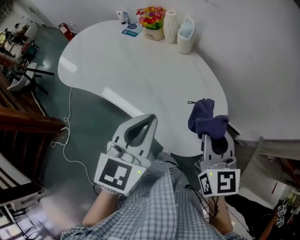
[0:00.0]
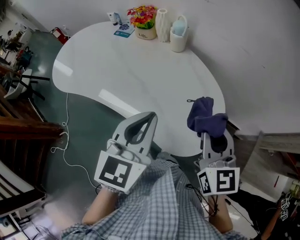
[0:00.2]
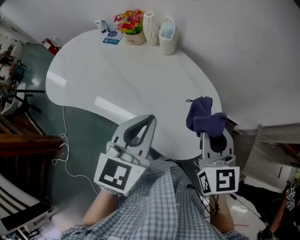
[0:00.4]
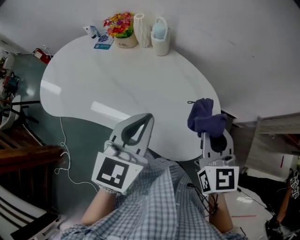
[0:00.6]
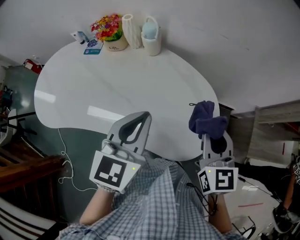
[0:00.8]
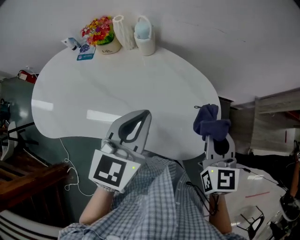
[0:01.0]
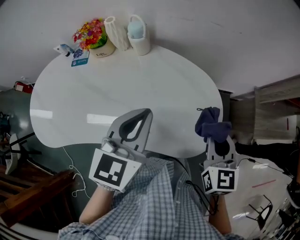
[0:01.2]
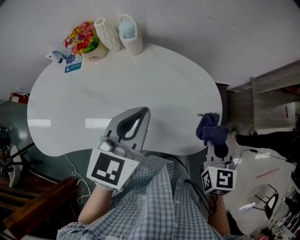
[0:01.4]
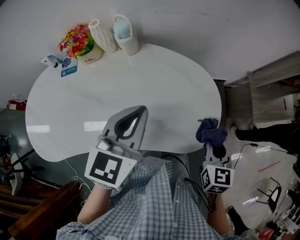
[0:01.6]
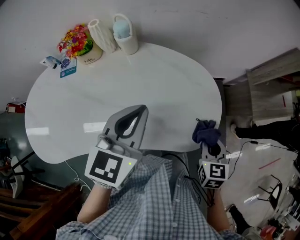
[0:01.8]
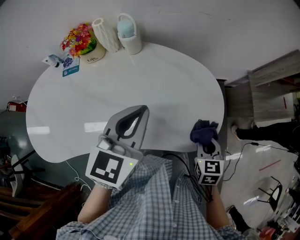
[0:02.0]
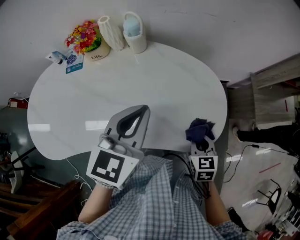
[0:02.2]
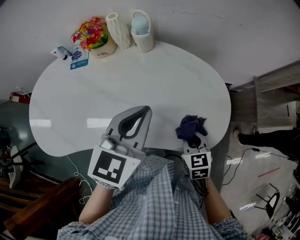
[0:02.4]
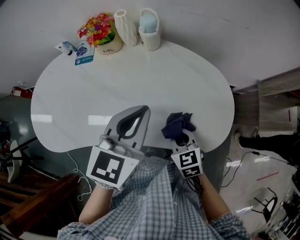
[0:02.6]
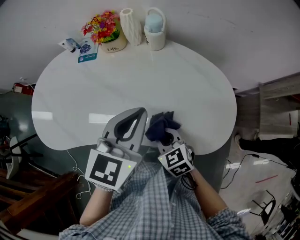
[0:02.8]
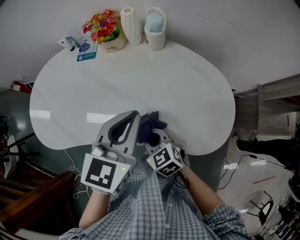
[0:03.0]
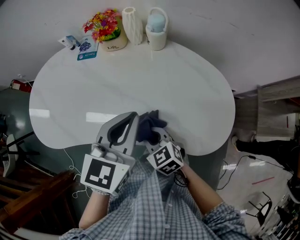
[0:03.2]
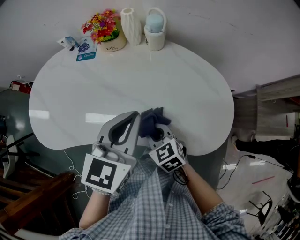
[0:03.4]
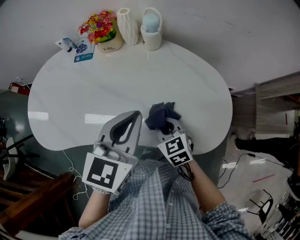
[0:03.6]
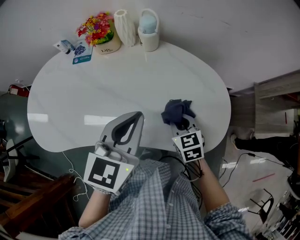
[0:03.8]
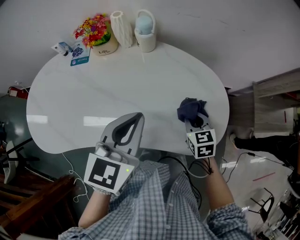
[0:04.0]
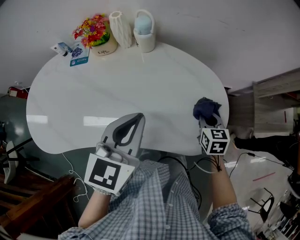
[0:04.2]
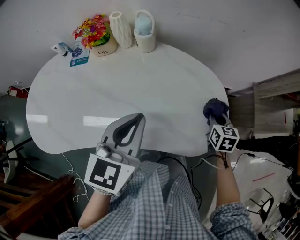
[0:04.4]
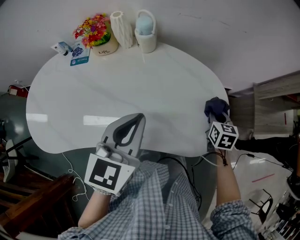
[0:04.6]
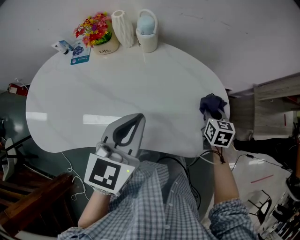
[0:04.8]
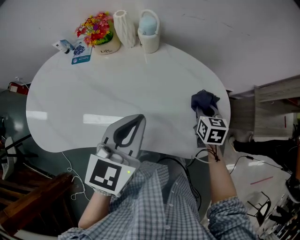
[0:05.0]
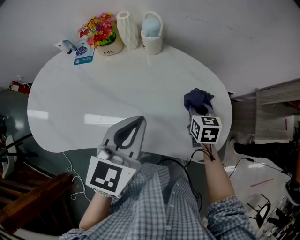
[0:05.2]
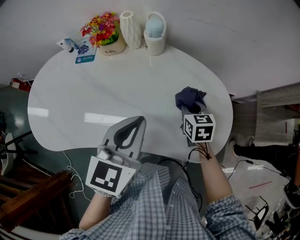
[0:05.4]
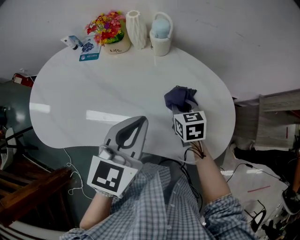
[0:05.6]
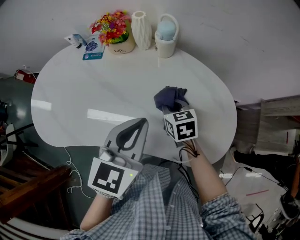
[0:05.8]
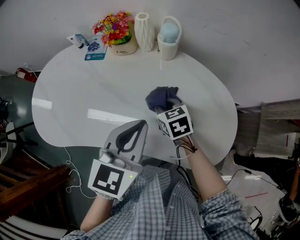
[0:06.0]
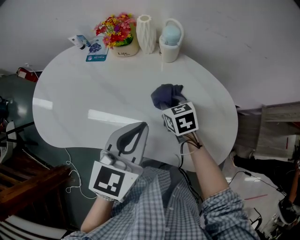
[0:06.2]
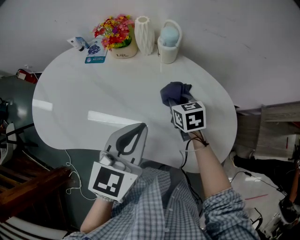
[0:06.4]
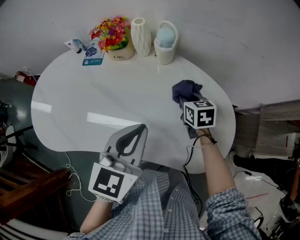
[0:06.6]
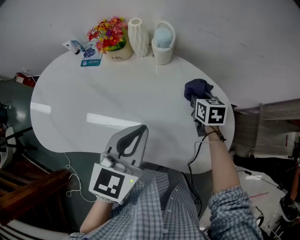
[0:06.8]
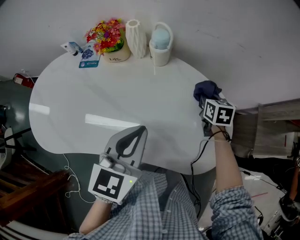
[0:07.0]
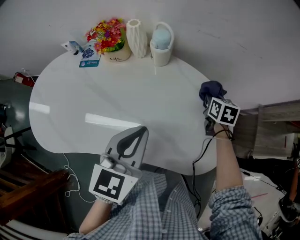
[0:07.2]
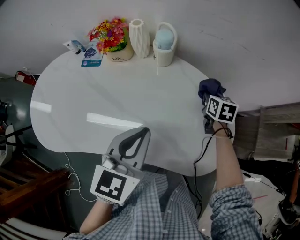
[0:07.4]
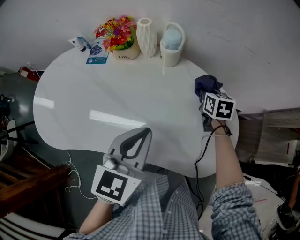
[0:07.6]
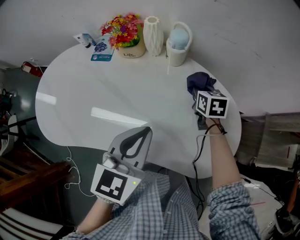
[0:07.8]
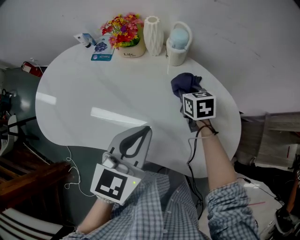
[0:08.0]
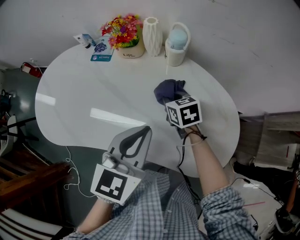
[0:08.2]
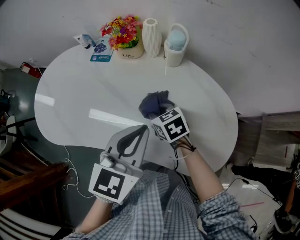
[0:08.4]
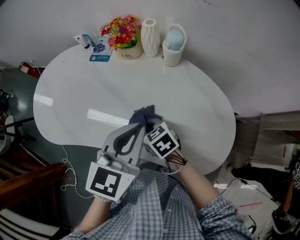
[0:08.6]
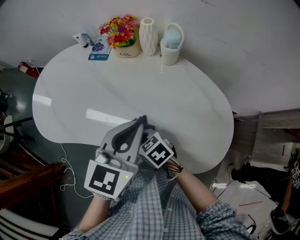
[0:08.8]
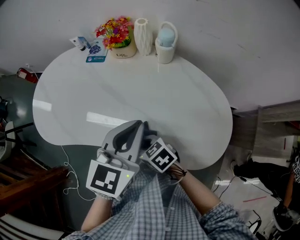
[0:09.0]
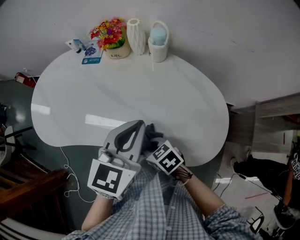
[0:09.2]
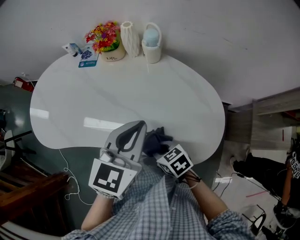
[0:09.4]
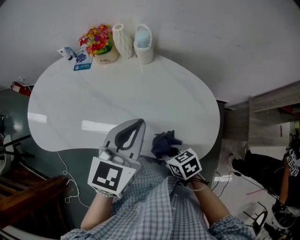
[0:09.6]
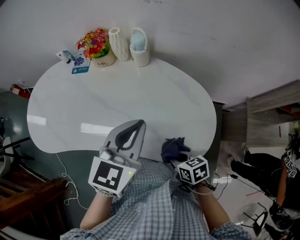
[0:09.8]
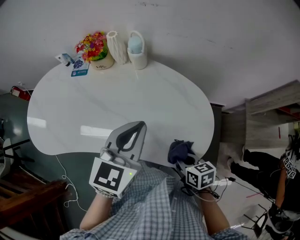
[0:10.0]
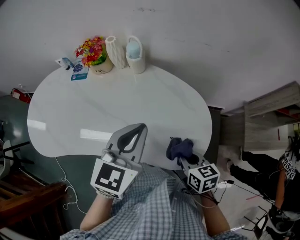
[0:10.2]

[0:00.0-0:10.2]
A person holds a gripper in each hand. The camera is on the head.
0:00.0 to 0:01.4: The left gripper changes place by some 15 cm, and changes its angle by some 30 degrees; the right gripper shifts some 10 cm downward, and swivels some 50 degrees.
0:01.4 to 0:03.0: The left gripper moves roughly 10 cm. The right gripper shifts by roughly 35 cm, and turns by about 60 degrees.
0:03.0 to 0:04.4: The right gripper ends up approximately 35 cm from where it was, and rotates about 50 degrees.
0:04.4 to 0:05.8: The right gripper moves to the left, roughly 25 cm, and changes its angle by roughly 30 degrees.
0:05.8 to 0:07.2: The right gripper travels to the right and forward by roughly 25 cm, and rotates about 20 degrees.
0:07.2 to 0:08.8: The right gripper changes place by approximately 40 cm, and rotates about 60 degrees.
0:08.8 to 0:10.2: The right gripper ends up about 30 cm from where it was, and rotates approximately 50 degrees; the left gripper moves about 10 cm.

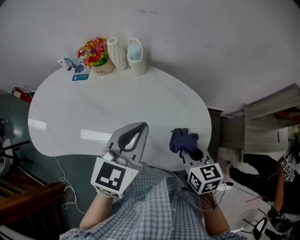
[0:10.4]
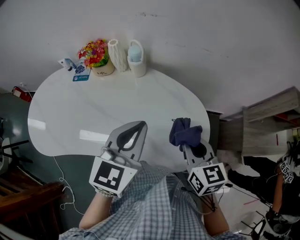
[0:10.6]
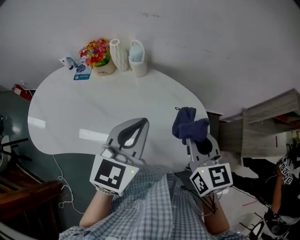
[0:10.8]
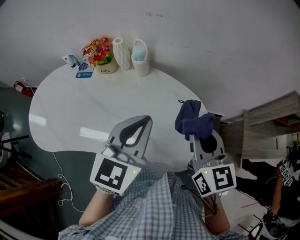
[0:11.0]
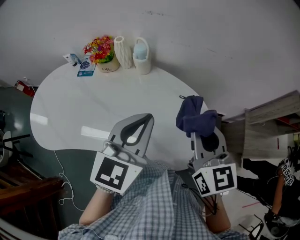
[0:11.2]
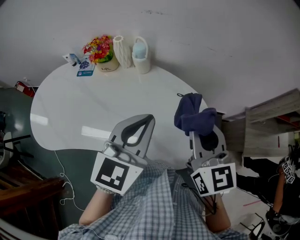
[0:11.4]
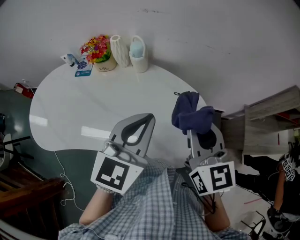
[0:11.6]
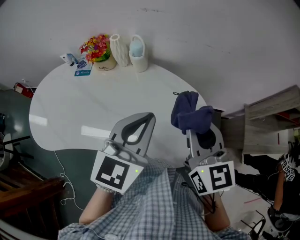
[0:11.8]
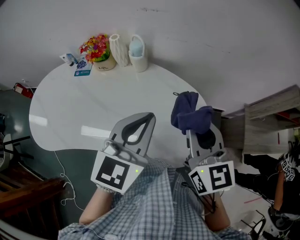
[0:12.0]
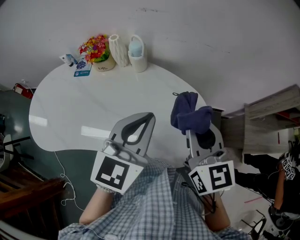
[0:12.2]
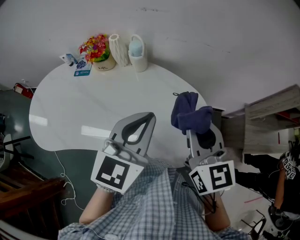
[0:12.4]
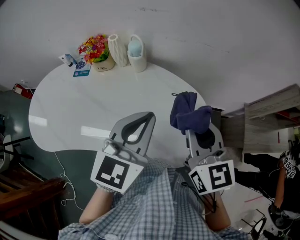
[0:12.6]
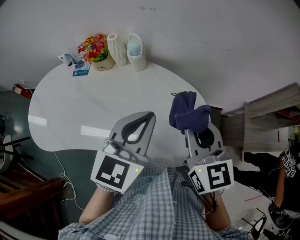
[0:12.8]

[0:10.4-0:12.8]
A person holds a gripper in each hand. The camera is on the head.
0:10.4 to 0:11.6: The right gripper moves upward, some 15 cm, and changes its angle by about 30 degrees.
0:11.6 to 0:12.8: Both grippers stay about where they are.

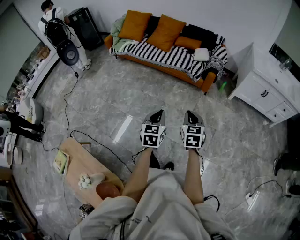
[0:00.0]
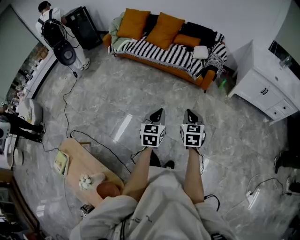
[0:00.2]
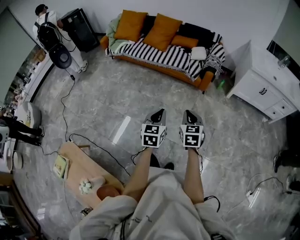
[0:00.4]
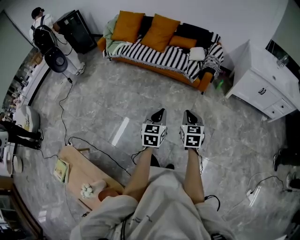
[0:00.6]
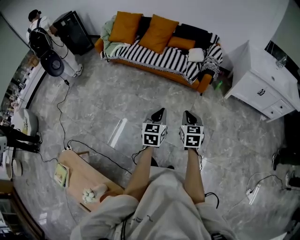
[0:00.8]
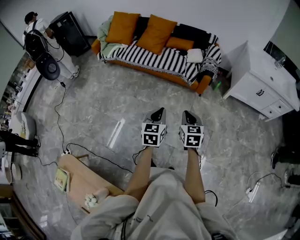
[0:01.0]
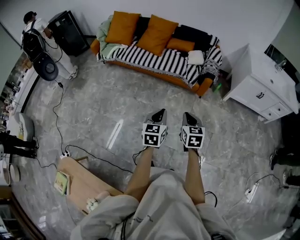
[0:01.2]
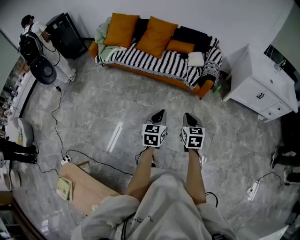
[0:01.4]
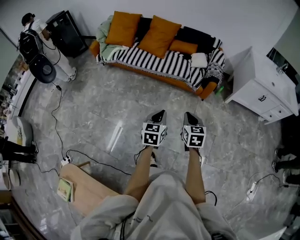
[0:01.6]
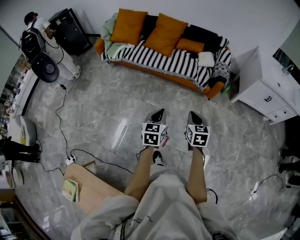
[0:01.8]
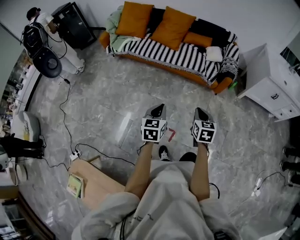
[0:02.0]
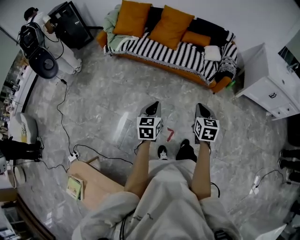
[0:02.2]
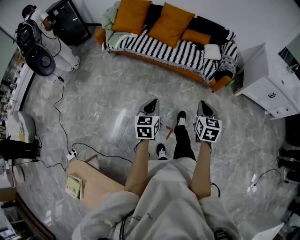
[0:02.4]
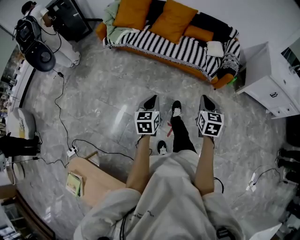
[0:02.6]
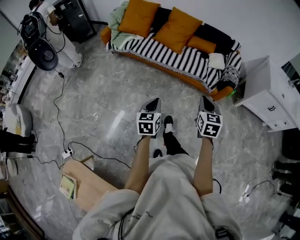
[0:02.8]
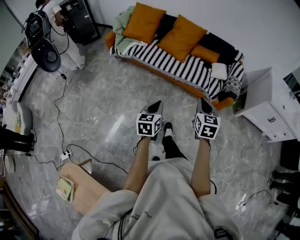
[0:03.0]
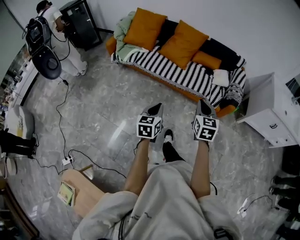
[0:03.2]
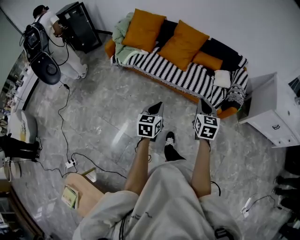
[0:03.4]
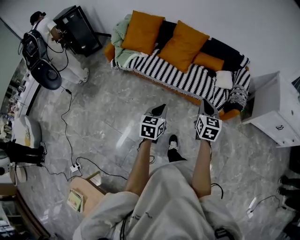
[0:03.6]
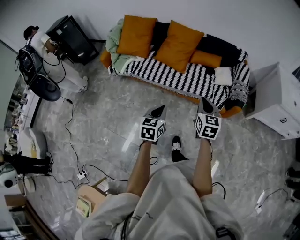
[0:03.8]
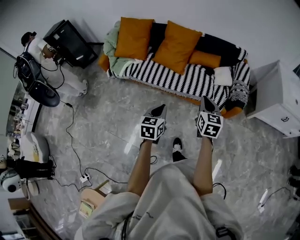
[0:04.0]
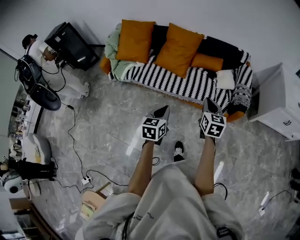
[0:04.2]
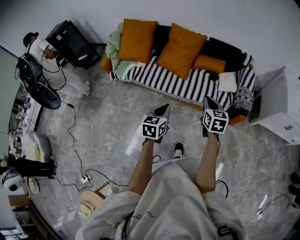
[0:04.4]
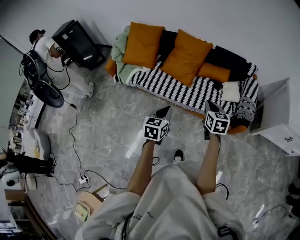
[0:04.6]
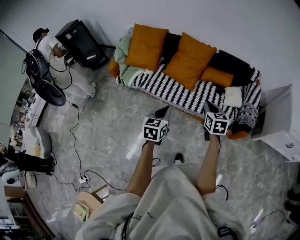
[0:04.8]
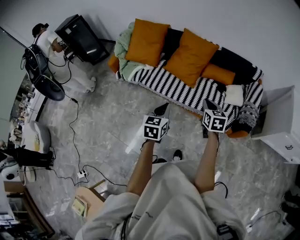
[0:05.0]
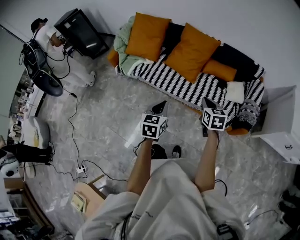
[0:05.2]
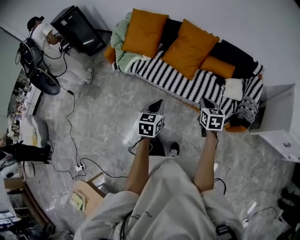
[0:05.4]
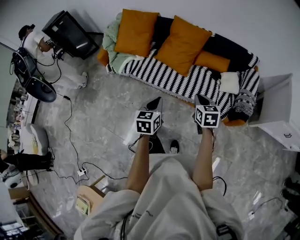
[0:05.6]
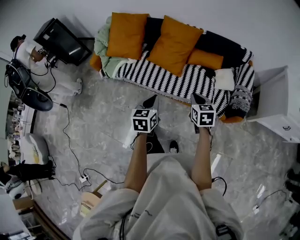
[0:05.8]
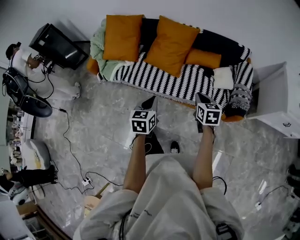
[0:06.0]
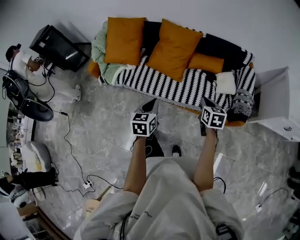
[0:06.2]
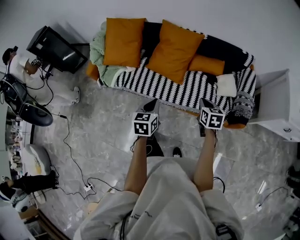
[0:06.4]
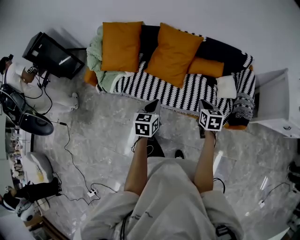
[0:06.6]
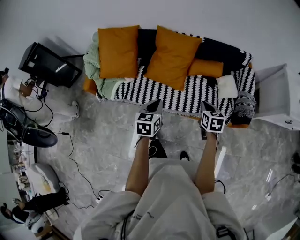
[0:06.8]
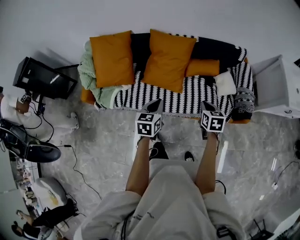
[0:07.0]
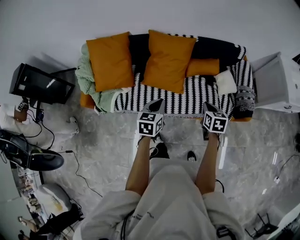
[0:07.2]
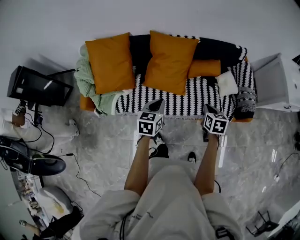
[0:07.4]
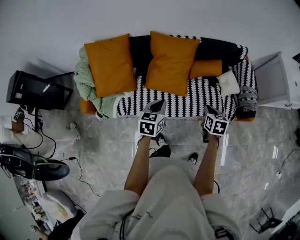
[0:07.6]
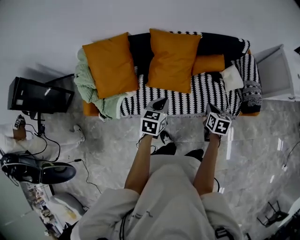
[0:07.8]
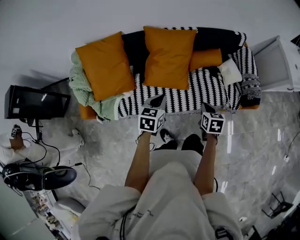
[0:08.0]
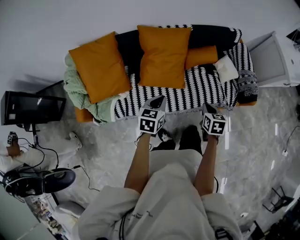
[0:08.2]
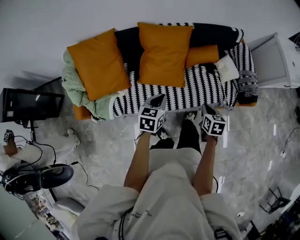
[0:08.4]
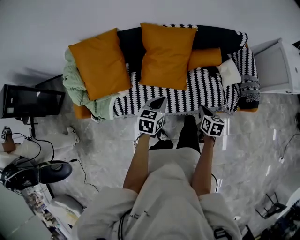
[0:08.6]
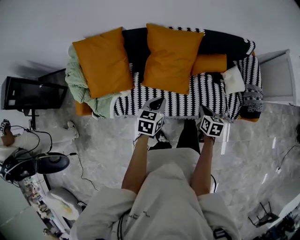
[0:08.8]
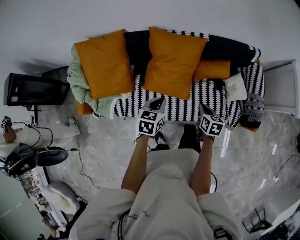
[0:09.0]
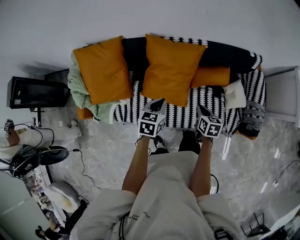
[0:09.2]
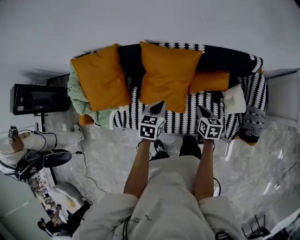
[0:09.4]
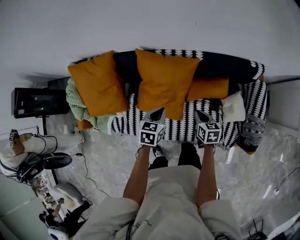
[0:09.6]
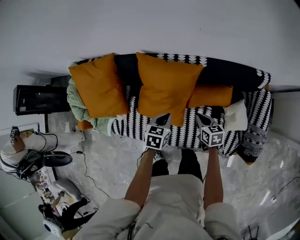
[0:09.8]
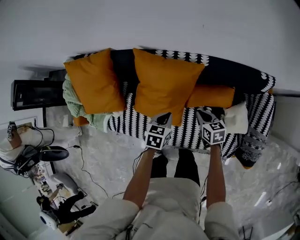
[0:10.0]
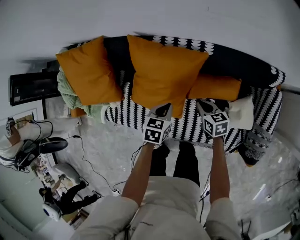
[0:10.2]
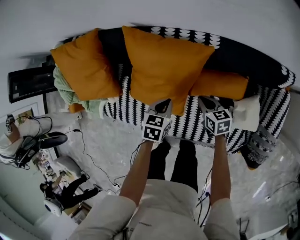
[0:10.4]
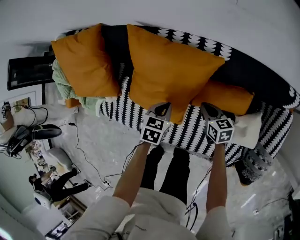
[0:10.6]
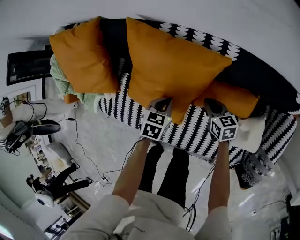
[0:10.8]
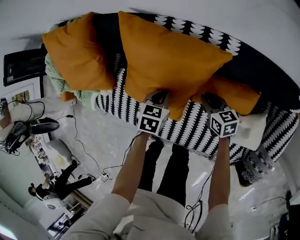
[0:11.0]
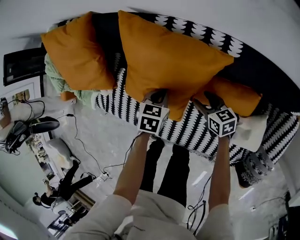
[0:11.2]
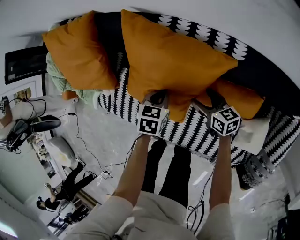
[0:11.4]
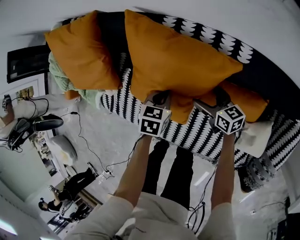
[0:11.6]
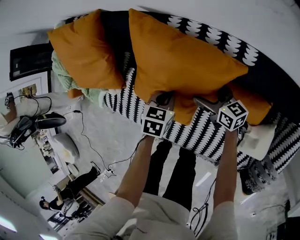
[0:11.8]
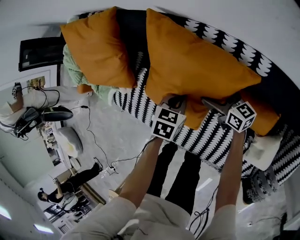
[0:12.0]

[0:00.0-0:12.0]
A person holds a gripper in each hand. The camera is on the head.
0:00.0 to 0:01.6: The two grippers go approximately 20 cm forward and to the left.
0:01.6 to 0:03.0: The right gripper goes about 20 cm forward and to the left; the left gripper travels to the left and forward by roughly 25 cm.
0:03.0 to 0:04.4: Both grippers travel together forward, about 30 cm.
0:04.4 to 0:06.0: The left gripper is displaced forward by some 15 cm. Meanwhile the right gripper is displaced forward and downward by approximately 10 cm.
0:06.0 to 0:07.6: The left gripper changes place by roughly 30 cm, and turns by roughly 30 degrees. Meanwhile the right gripper changes place by approximately 20 cm, and changes its angle by some 30 degrees.
0:07.6 to 0:09.0: Both grippers move forward and downward, approximately 15 cm.
0:09.0 to 0:10.4: The right gripper travels forward and downward by some 30 cm, and rotates some 30 degrees. The left gripper goes about 30 cm downward, forward and to the right.
0:10.4 to 0:12.0: The right gripper moves forward and downward, approximately 15 cm, changes its angle by approximately 30 degrees, and opens; the left gripper is displaced downward and forward by roughly 10 cm.
